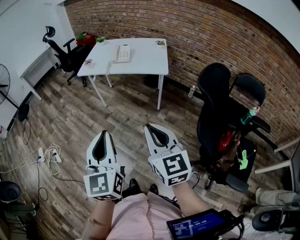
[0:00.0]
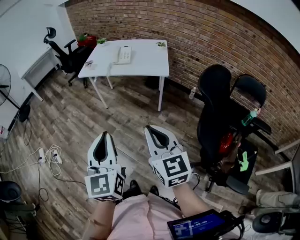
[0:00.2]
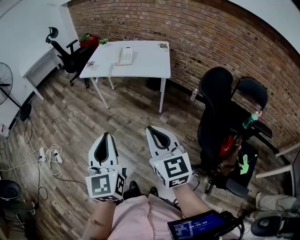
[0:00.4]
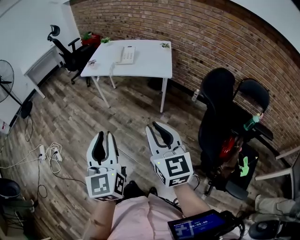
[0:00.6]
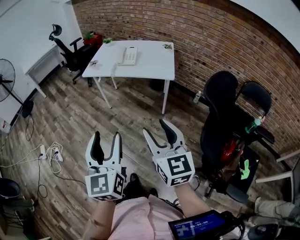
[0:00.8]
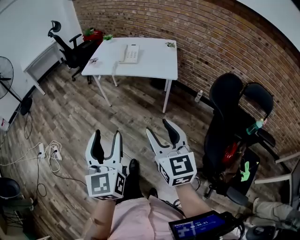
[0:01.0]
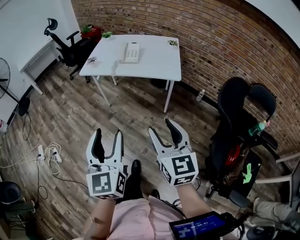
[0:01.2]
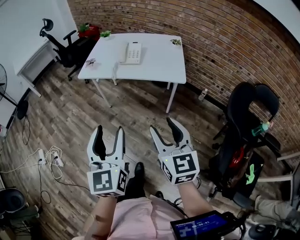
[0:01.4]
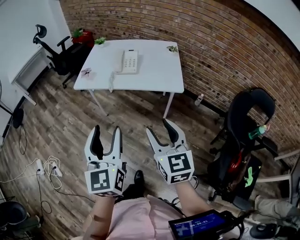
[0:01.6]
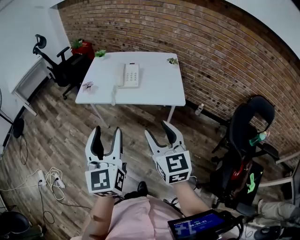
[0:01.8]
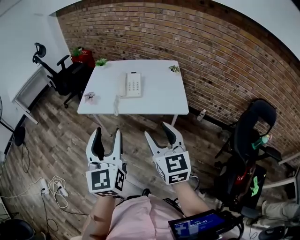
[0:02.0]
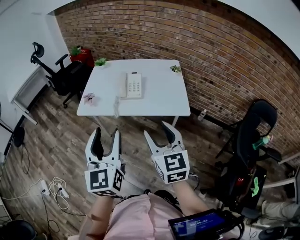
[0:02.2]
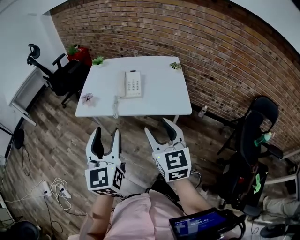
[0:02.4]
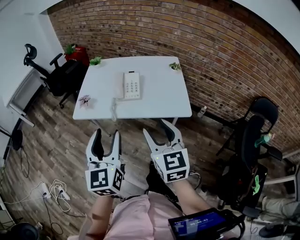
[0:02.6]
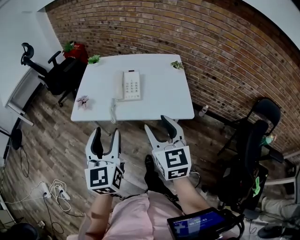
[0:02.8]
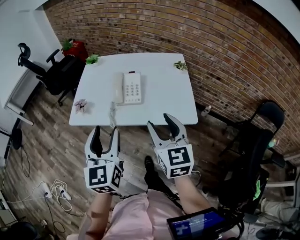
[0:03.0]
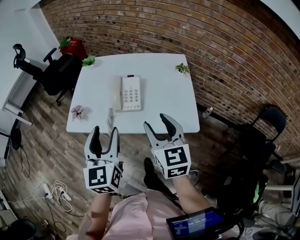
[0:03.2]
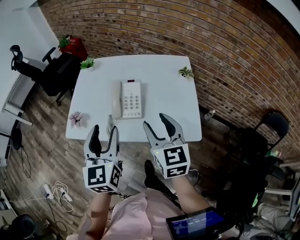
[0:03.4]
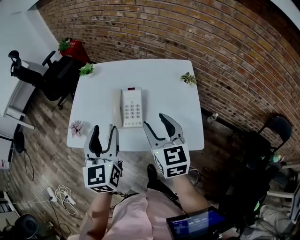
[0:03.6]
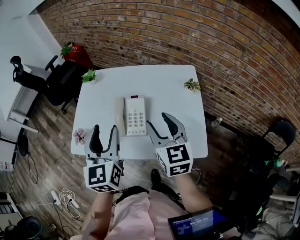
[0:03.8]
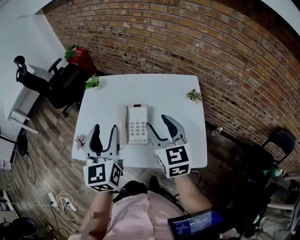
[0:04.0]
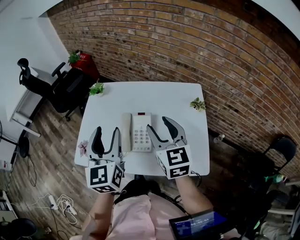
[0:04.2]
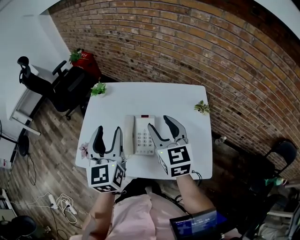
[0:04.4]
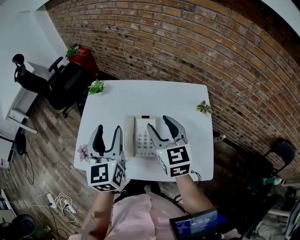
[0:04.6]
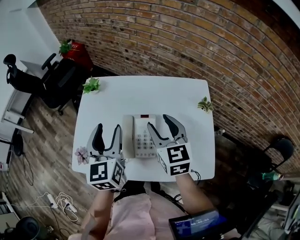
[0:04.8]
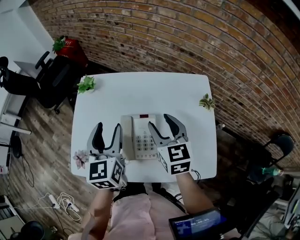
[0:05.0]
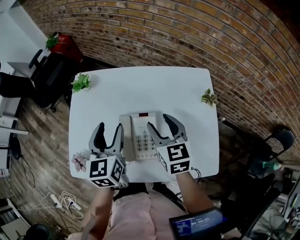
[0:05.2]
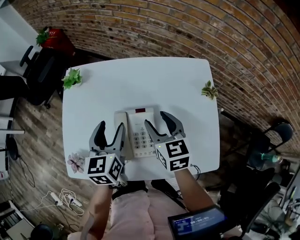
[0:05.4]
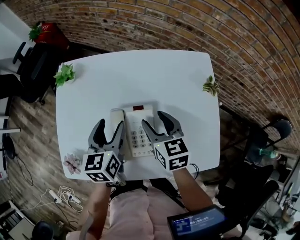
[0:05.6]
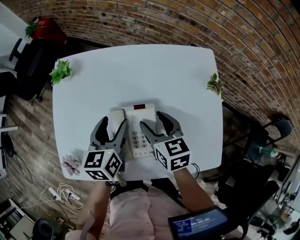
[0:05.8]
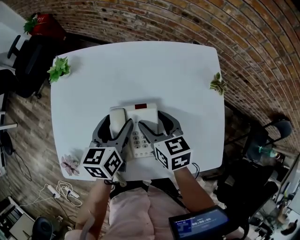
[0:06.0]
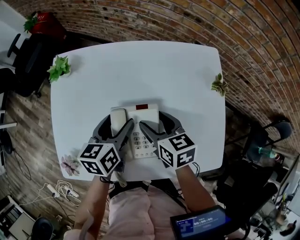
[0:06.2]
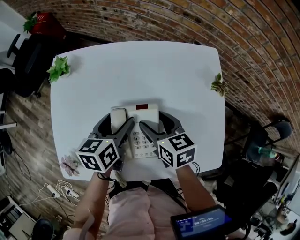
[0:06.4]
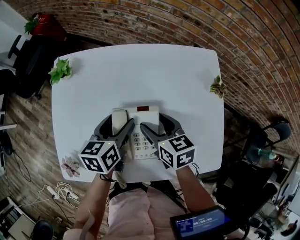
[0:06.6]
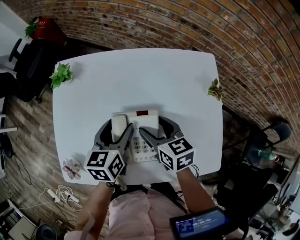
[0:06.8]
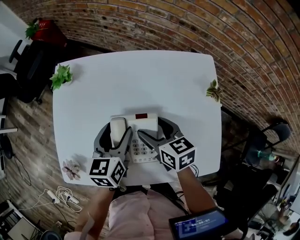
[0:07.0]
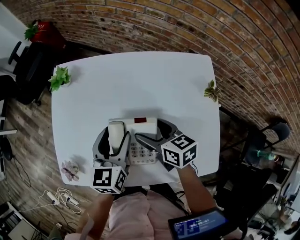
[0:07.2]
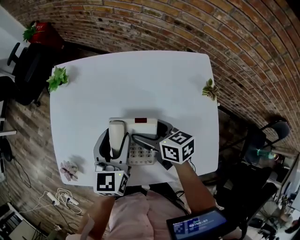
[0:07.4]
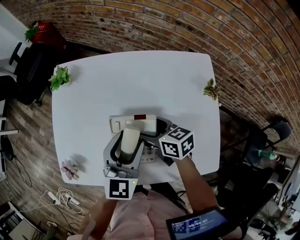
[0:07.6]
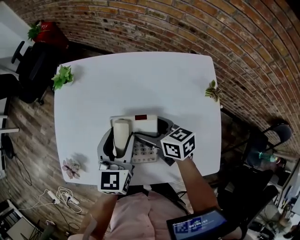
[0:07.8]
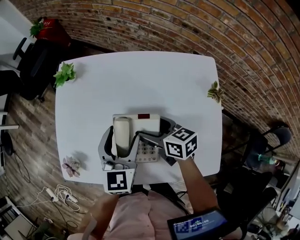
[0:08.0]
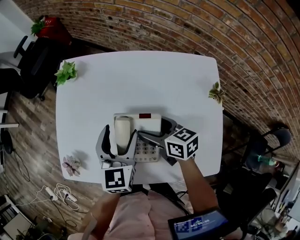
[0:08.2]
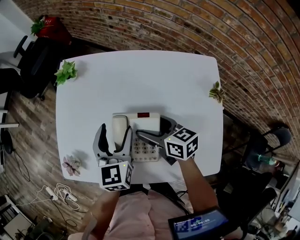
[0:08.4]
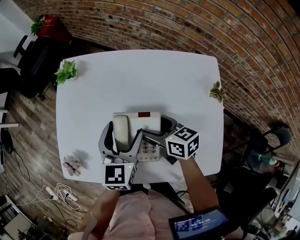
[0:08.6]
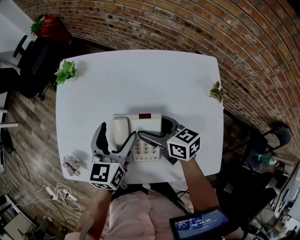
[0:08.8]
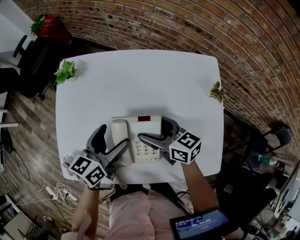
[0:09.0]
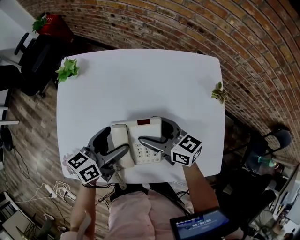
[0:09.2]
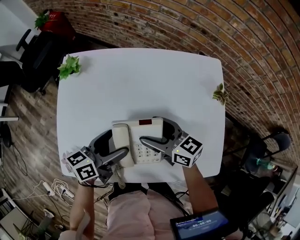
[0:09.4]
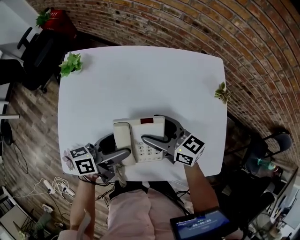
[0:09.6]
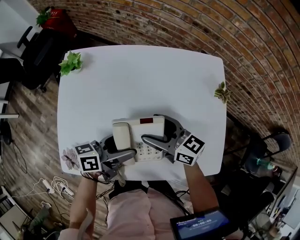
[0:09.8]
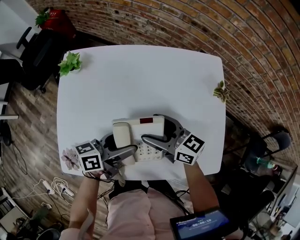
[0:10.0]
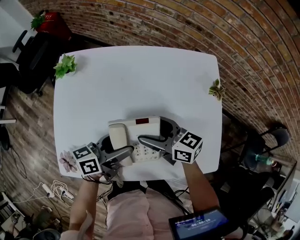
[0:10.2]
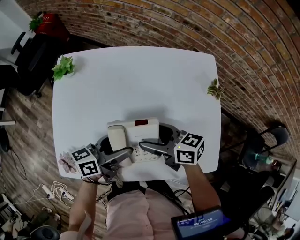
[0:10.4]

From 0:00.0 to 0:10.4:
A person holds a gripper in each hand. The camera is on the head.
From 0:00.0 to 0:01.4: The grippers both shift forward by approximately 20 cm. The left gripper opens its fingers. The right gripper opens its fingers.
From 0:01.4 to 0:03.0: The grippers both shift forward by approximately 35 cm.
From 0:03.0 to 0:04.4: Both grippers move forward, approximately 30 cm.
From 0:04.4 to 0:06.0: The left gripper travels downward and forward by approximately 25 cm, and rotates about 40 degrees, while the right gripper shifts some 20 cm downward, and changes its angle by about 30 degrees.
From 0:06.0 to 0:07.4: The left gripper changes place by roughly 5 cm, and turns by roughly 20 degrees. The right gripper swivels approximately 20 degrees.
From 0:07.4 to 0:09.0: The left gripper turns by roughly 30 degrees, and opens its fingers.
From 0:09.0 to 0:10.4: The left gripper changes place by approximately 5 cm, and rotates some 30 degrees.

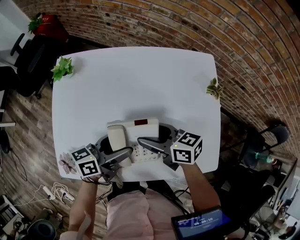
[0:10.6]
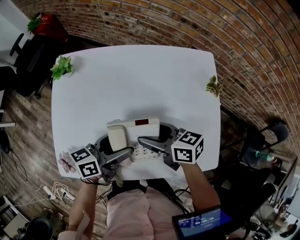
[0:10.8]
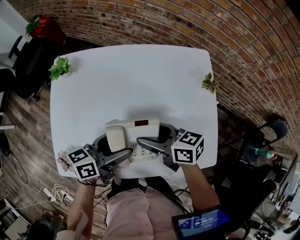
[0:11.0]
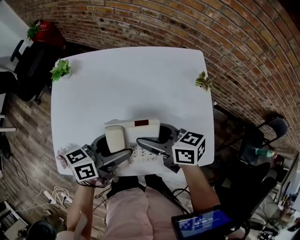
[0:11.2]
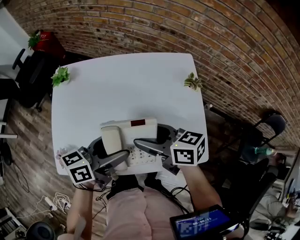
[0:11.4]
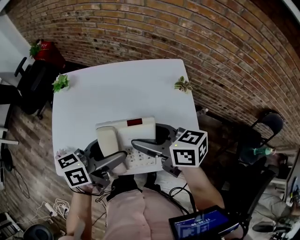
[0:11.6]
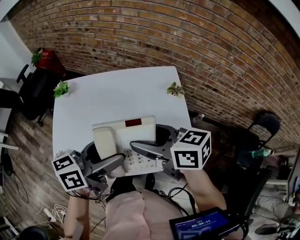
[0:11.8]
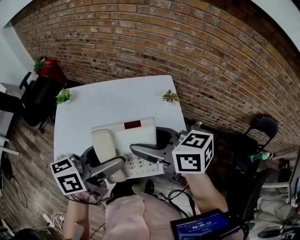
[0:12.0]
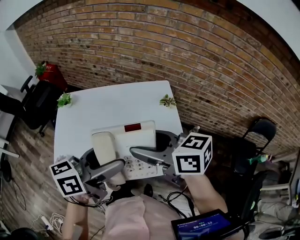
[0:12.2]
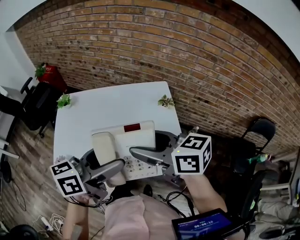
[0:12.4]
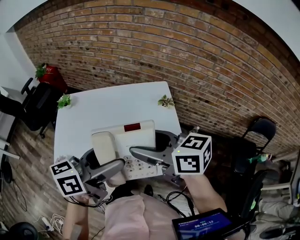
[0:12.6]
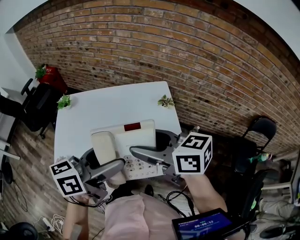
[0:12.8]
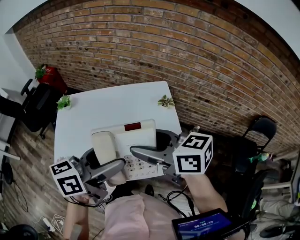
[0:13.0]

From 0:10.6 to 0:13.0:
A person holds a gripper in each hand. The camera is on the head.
From 0:10.6 to 0:11.8: The grippers both shift upward by about 20 cm.
From 0:11.8 to 0:13.0: Both grippers travel together upward, roughly 5 cm.

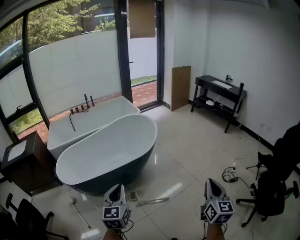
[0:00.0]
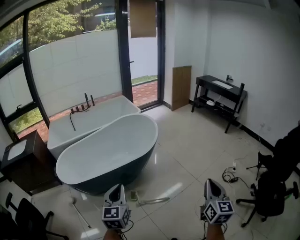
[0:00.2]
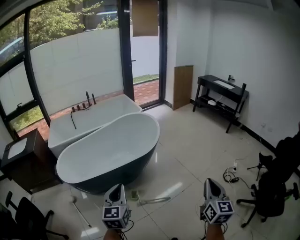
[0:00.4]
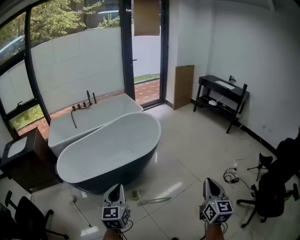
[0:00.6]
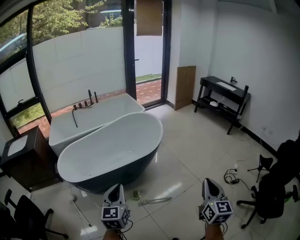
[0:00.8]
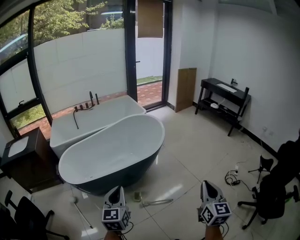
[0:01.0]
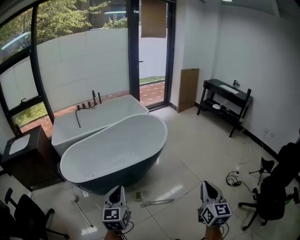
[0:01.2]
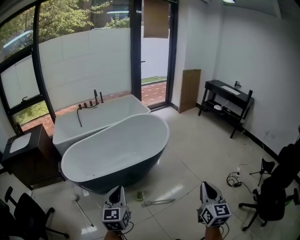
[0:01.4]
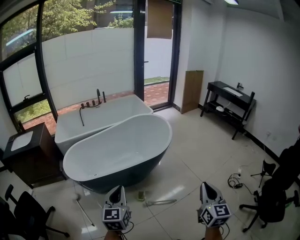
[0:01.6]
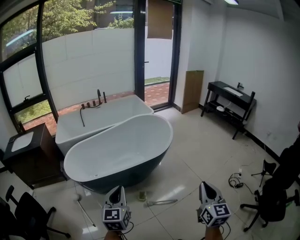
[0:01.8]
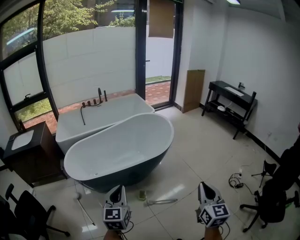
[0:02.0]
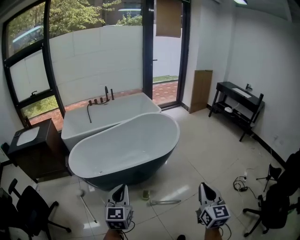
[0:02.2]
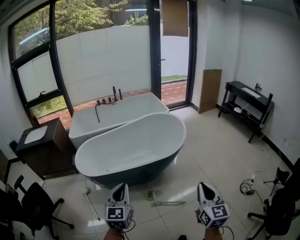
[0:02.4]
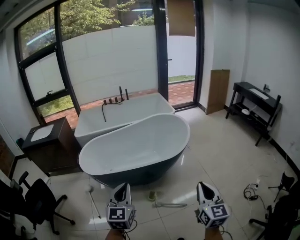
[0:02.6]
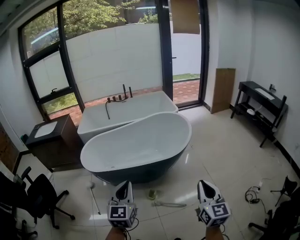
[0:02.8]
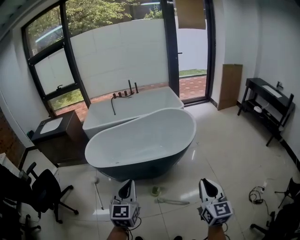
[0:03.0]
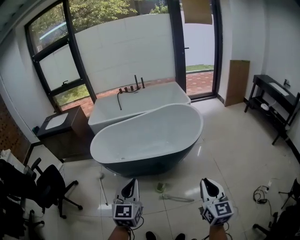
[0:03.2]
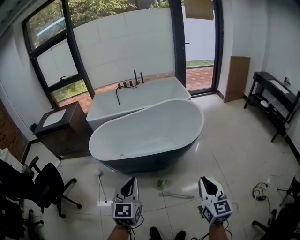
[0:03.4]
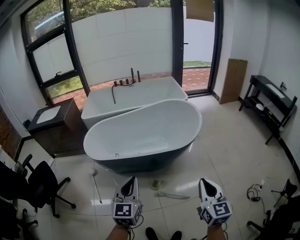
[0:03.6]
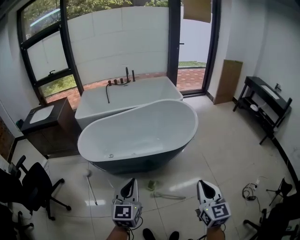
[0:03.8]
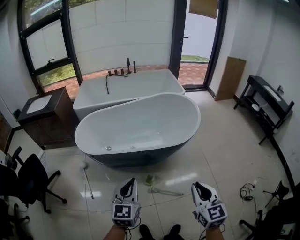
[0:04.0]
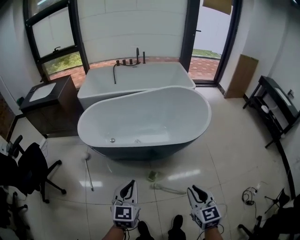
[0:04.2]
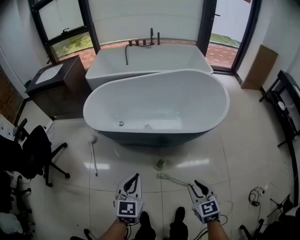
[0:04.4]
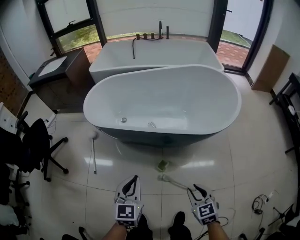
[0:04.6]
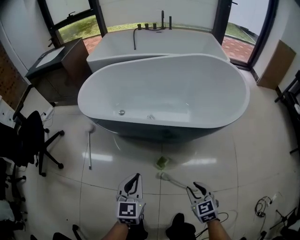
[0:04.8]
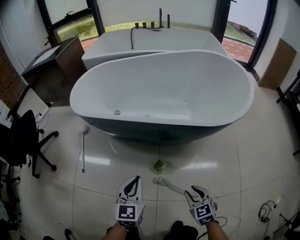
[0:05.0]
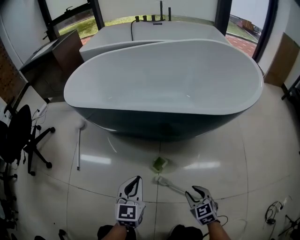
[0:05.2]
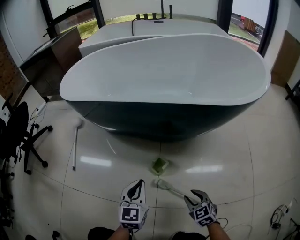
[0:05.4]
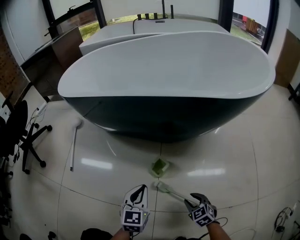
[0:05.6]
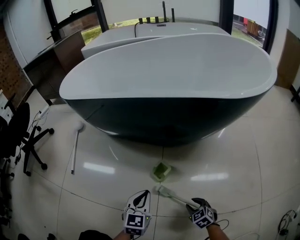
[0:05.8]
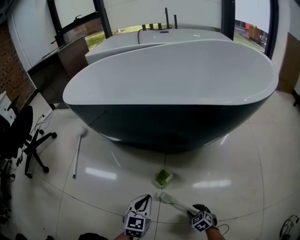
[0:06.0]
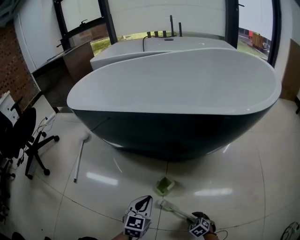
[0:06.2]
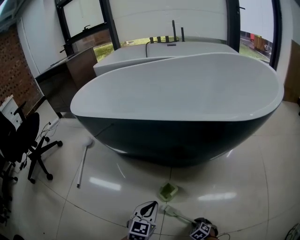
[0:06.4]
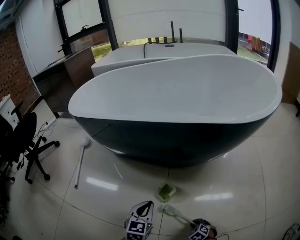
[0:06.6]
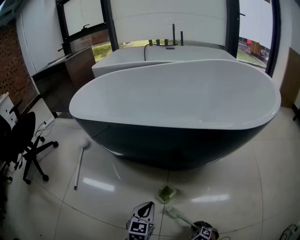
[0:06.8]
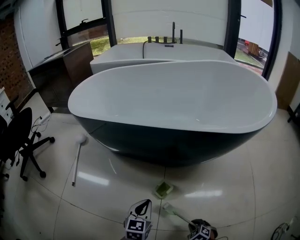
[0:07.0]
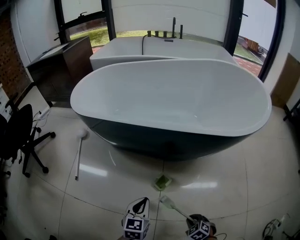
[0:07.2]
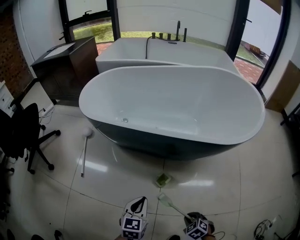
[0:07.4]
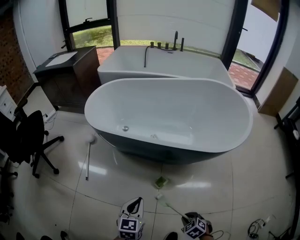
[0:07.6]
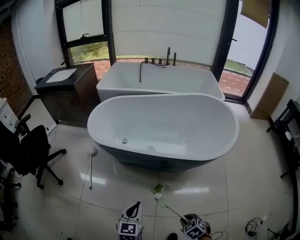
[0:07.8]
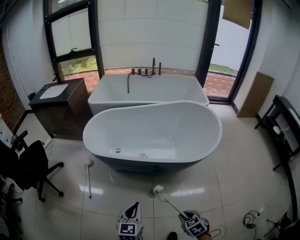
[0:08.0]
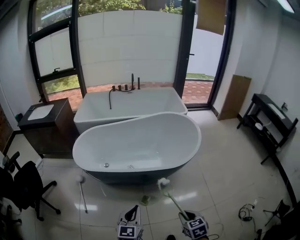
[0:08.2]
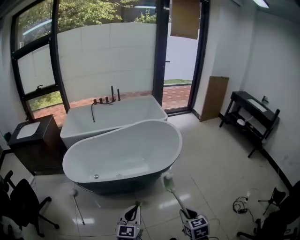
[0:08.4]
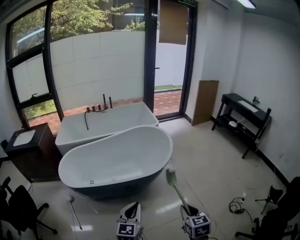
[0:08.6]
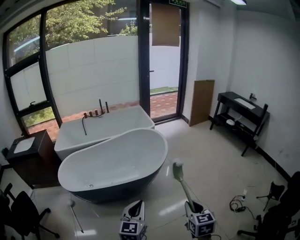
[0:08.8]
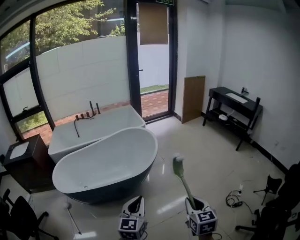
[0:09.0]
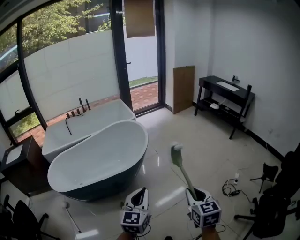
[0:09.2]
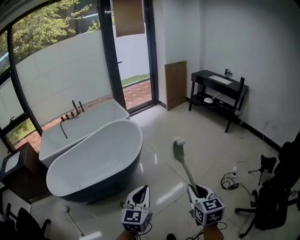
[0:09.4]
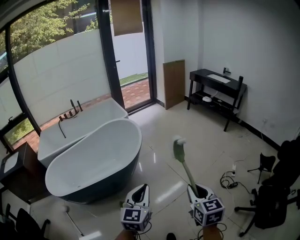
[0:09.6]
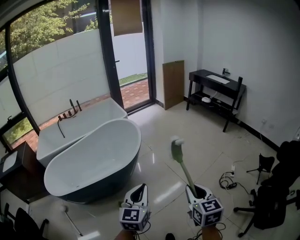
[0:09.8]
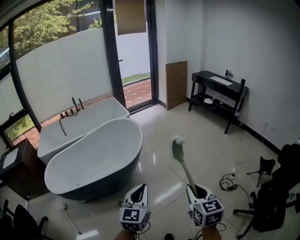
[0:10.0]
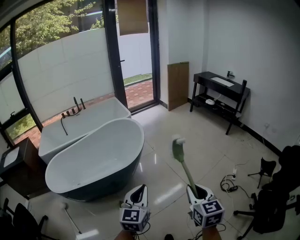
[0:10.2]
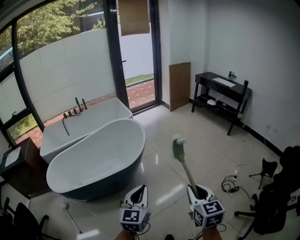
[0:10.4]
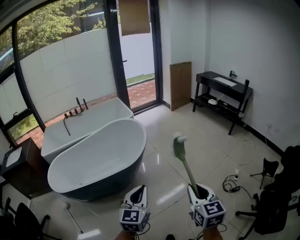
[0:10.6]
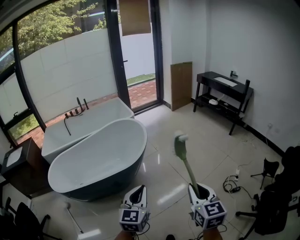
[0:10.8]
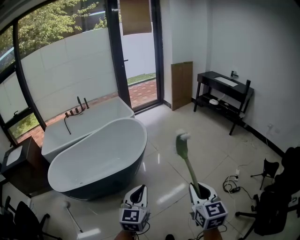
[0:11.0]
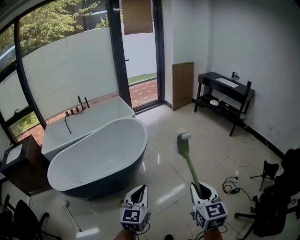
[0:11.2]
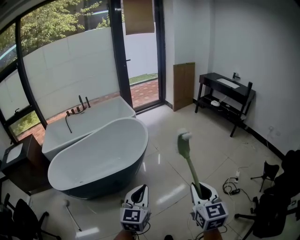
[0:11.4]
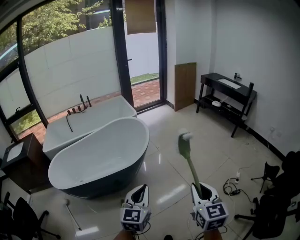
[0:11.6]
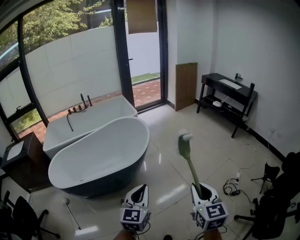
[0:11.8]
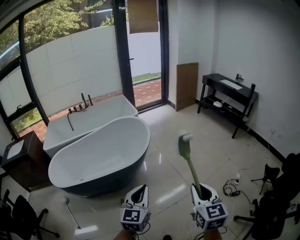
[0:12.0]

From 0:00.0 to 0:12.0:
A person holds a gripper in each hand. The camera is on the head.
From 0:00.0 to 0:01.6: Both grippers travel together to the left, approximately 25 cm.
From 0:01.6 to 0:03.0: The right gripper goes approximately 30 cm to the right and forward, and changes its angle by roughly 20 degrees; the left gripper moves to the right, some 30 cm.
From 0:03.0 to 0:04.4: Both grippers move downward, forward and to the left, approximately 50 cm. The right gripper turns by some 40 degrees, and opens.
From 0:04.4 to 0:06.0: Both grippers move downward, approximately 1 m. The right gripper rotates approximately 40 degrees.
From 0:06.0 to 0:07.6: Both grippers travel together upward, roughly 70 cm. The right gripper closes up.
From 0:07.6 to 0:09.0: The pair of grippers is taken some 60 cm. Both grippers move upward, roughly 80 cm. The left gripper turns by approximately 40 degrees. The right gripper angles its fingers upward, by roughly 50 degrees.
From 0:09.0 to 0:10.4: The grippers both shift to the right by some 15 cm.
From 0:10.4 to 0:12.0: The grippers stay close to where they were, moving slightly.
